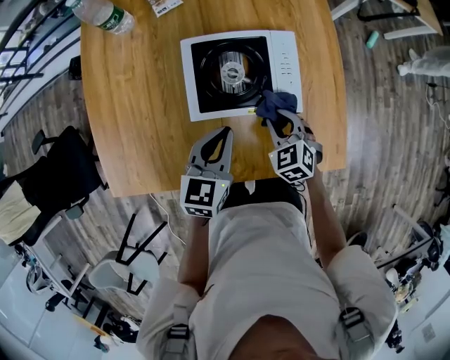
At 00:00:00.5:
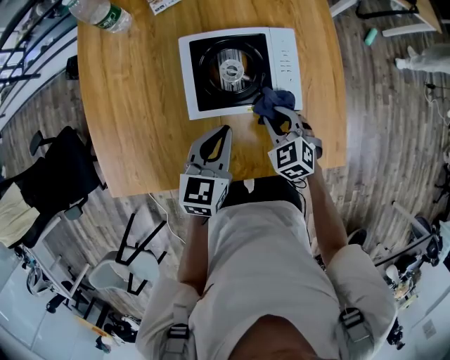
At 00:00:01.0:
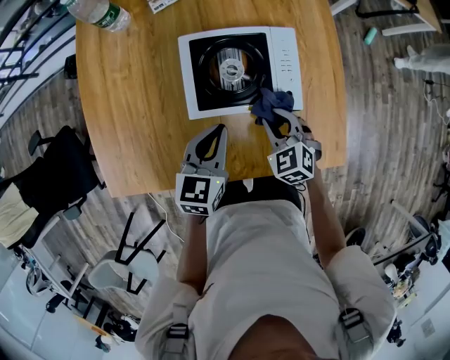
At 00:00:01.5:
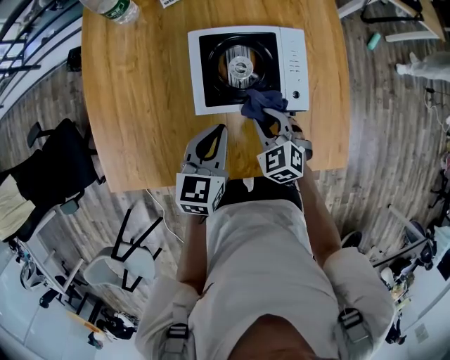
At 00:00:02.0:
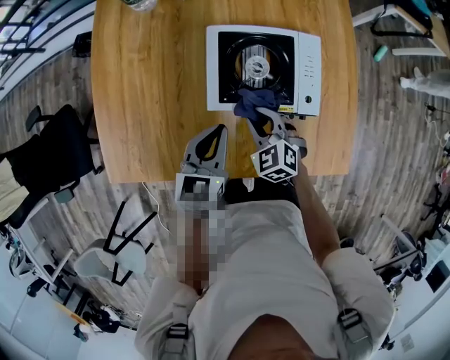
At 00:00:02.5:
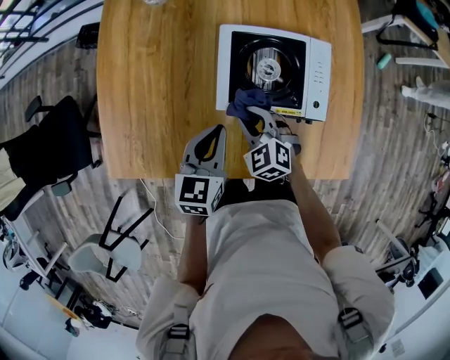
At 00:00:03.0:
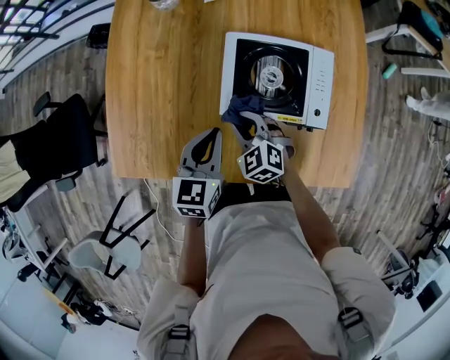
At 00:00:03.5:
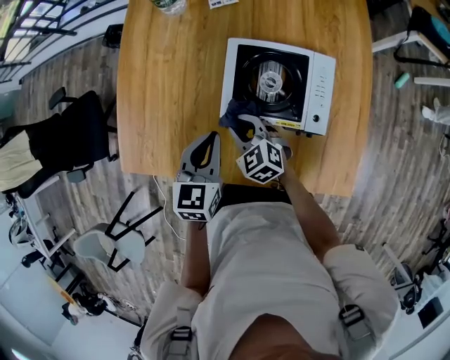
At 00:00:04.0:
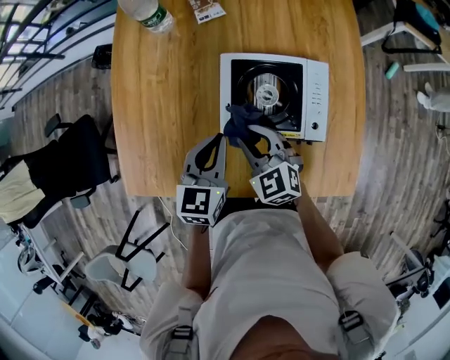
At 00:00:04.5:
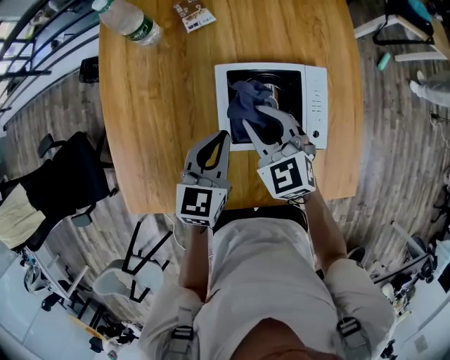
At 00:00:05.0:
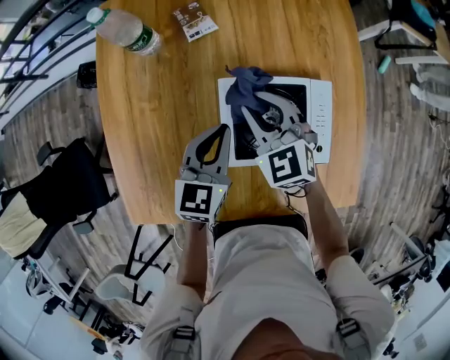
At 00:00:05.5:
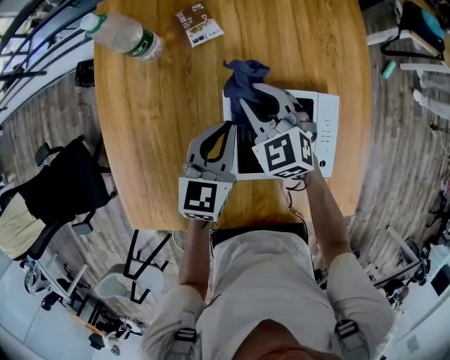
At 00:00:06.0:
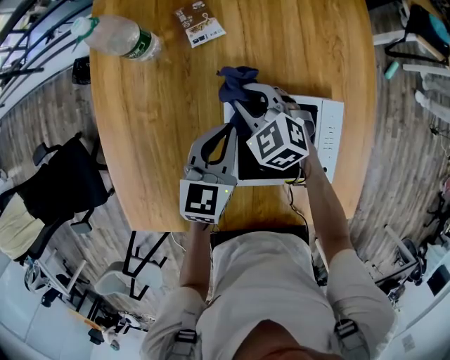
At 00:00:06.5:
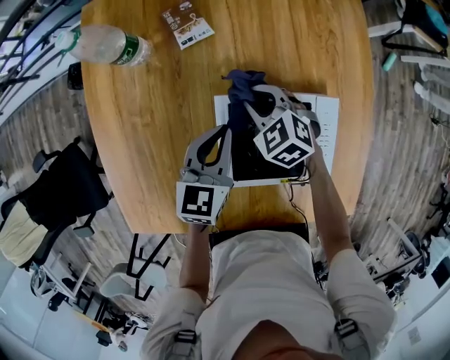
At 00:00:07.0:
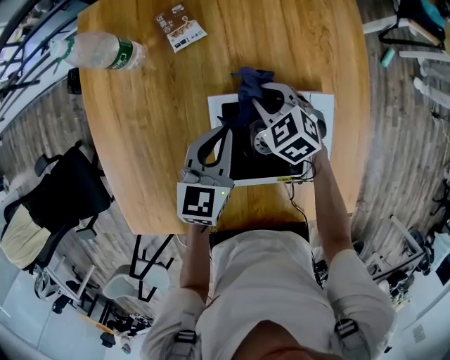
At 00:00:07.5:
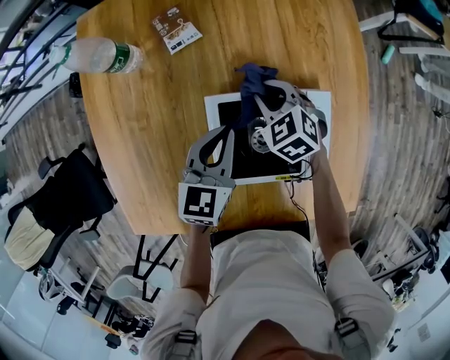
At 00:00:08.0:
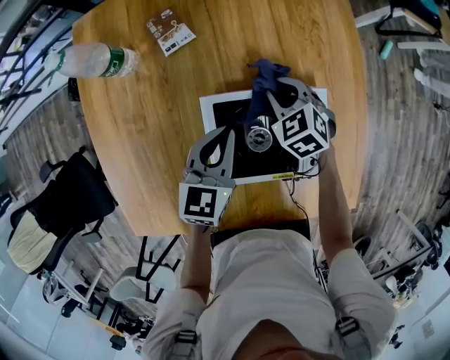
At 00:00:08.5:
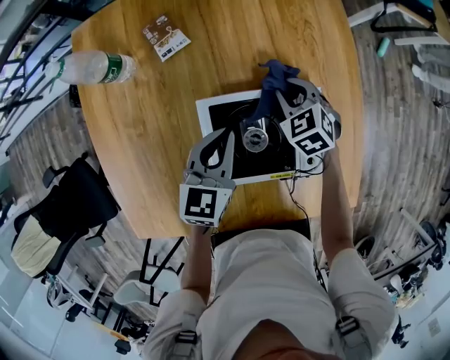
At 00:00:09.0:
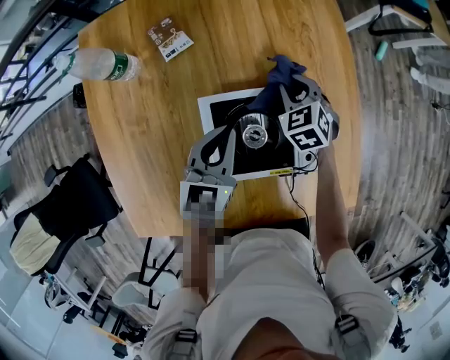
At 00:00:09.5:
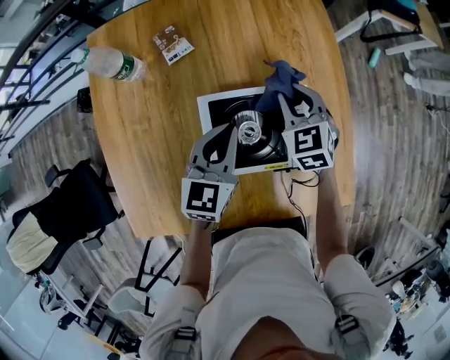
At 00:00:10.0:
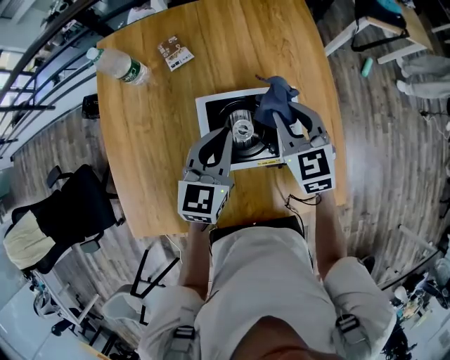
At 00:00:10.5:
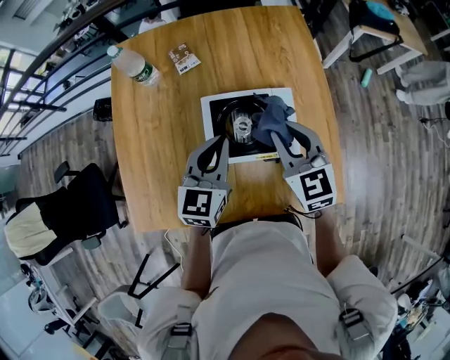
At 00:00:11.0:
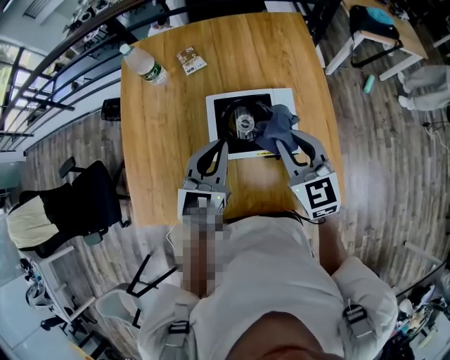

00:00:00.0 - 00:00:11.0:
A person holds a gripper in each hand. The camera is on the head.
00:00:00.0 - 00:00:02.0: The right gripper shifts approximately 10 cm to the left; the left gripper heads to the left, covering roughly 5 cm.
00:00:02.0 - 00:00:03.5: The right gripper moves to the left, some 10 cm.
00:00:03.5 - 00:00:05.5: Both grippers travel together forward, approximately 20 cm.
00:00:05.5 - 00:00:07.5: The right gripper goes roughly 10 cm to the right and downward.
00:00:07.5 - 00:00:09.0: The right gripper moves to the right, some 10 cm.
00:00:09.0 - 00:00:11.0: The right gripper shifts about 30 cm upward and backward, and points its fingers approximately 30 degrees further upward; the left gripper is displaced backward and upward by roughly 20 cm.

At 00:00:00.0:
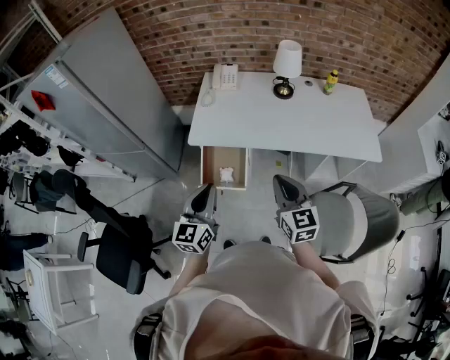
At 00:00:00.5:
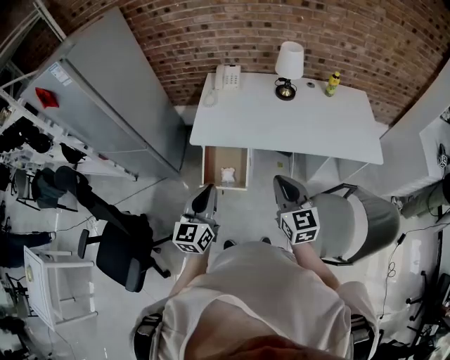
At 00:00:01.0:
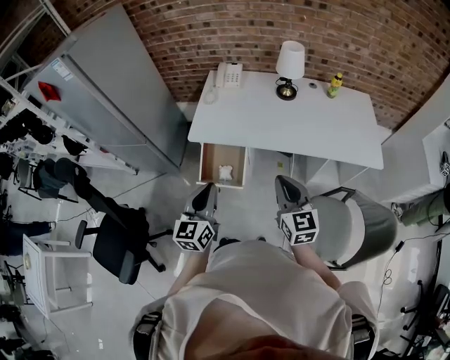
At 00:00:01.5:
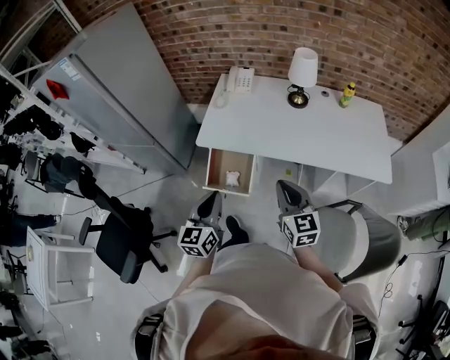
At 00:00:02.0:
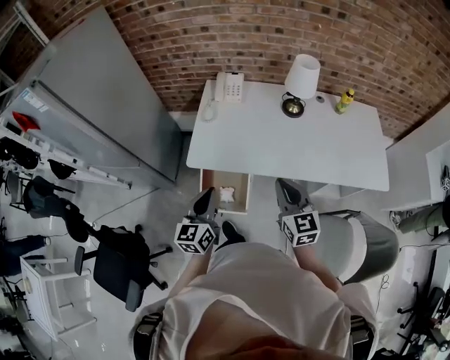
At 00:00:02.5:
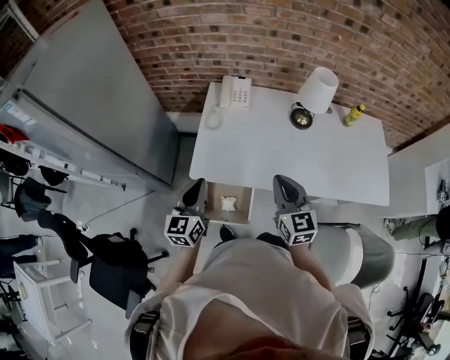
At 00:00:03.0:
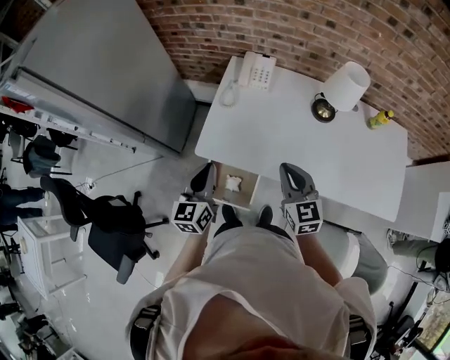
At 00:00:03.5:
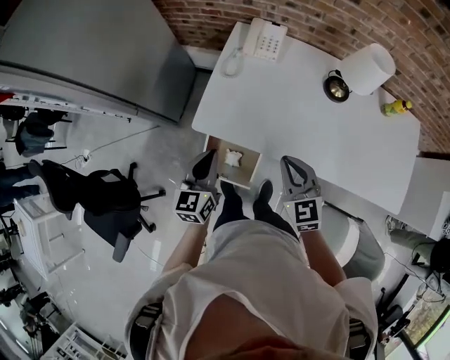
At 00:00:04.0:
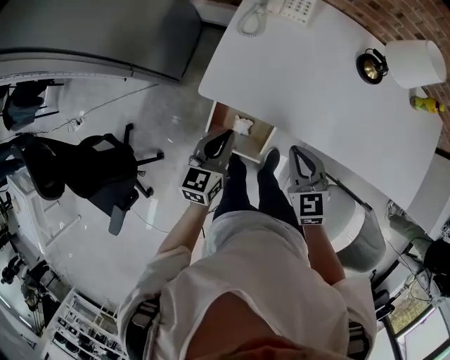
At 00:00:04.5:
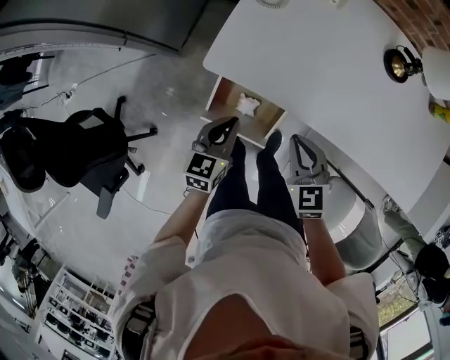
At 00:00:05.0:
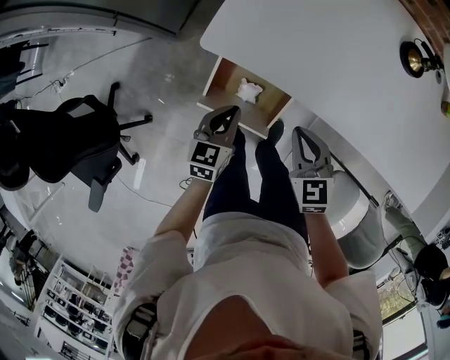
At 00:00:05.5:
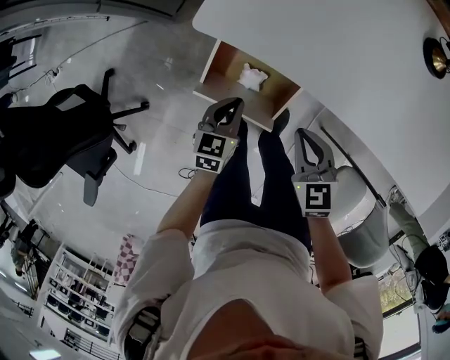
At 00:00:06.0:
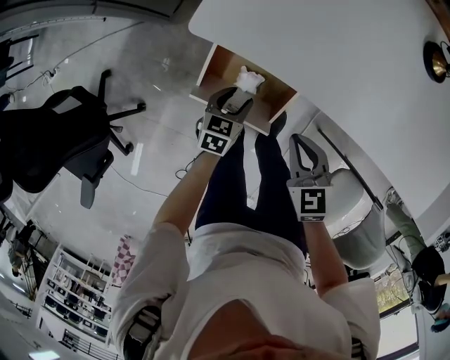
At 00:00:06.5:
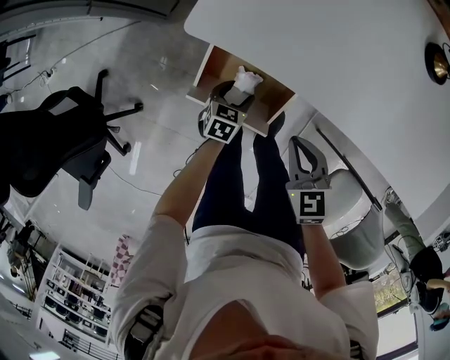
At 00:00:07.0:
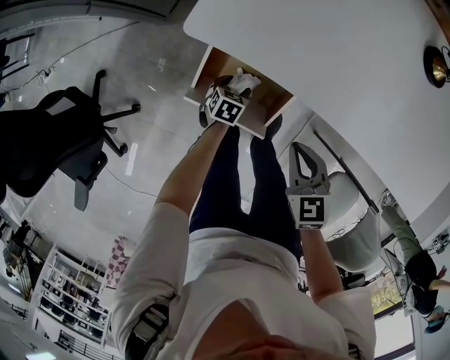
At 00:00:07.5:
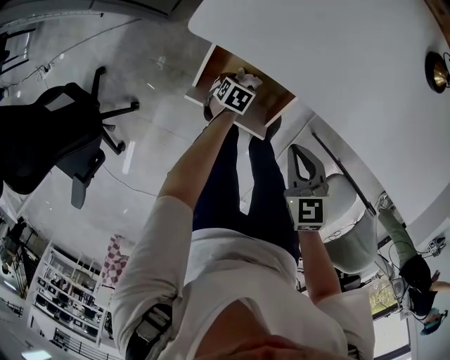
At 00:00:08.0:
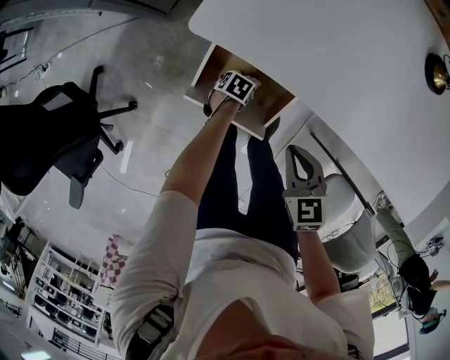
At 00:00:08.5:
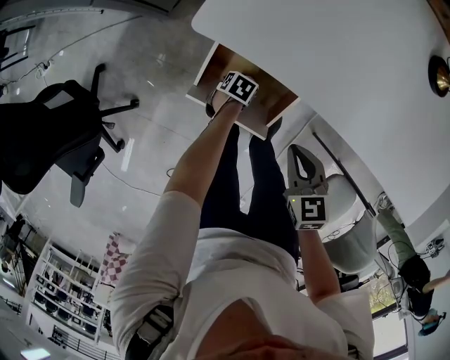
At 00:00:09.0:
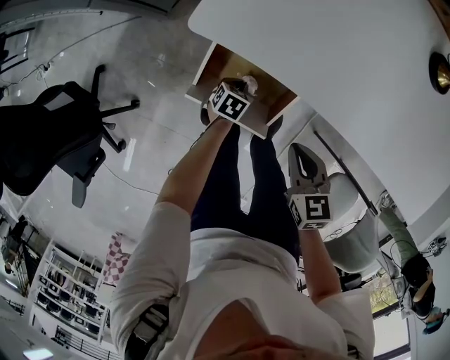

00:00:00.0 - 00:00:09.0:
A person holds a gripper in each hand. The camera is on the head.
00:00:00.0 - 00:00:02.0: Both grippers travel together forward, approximately 15 cm.
00:00:02.0 - 00:00:04.5: The left gripper goes approximately 25 cm downward, and changes its angle by some 20 degrees. The right gripper goes approximately 30 cm downward and forward, and changes its angle by roughly 30 degrees.
00:00:04.5 - 00:00:07.0: The right gripper travels downward and backward by approximately 15 cm. Meanwhile the left gripper is displaced downward by some 35 cm, points its fingers approximately 30 degrees further downward, and opens its fingers.
00:00:07.0 - 00:00:09.0: The left gripper closes up.

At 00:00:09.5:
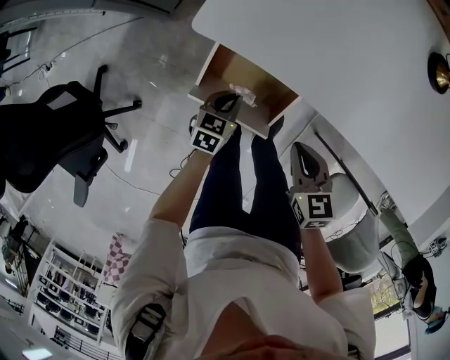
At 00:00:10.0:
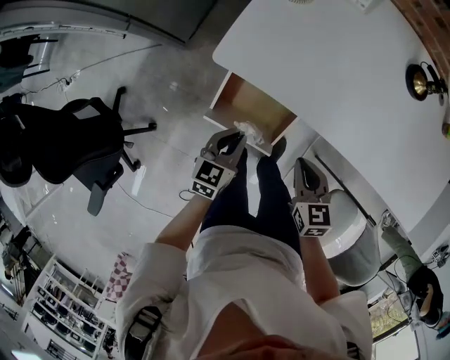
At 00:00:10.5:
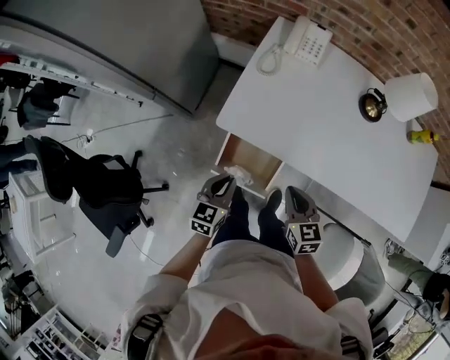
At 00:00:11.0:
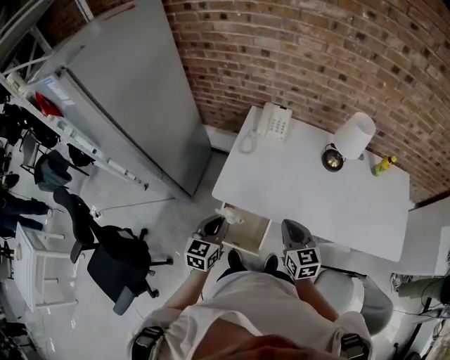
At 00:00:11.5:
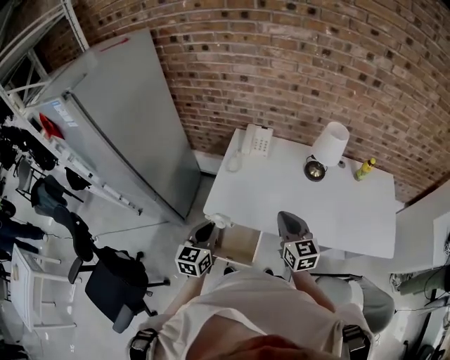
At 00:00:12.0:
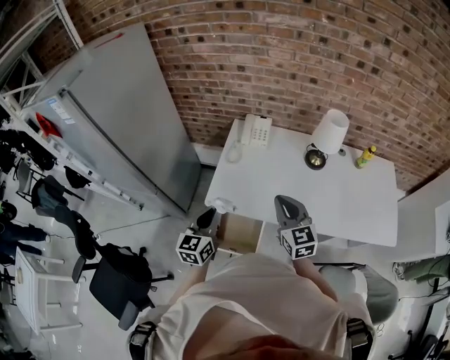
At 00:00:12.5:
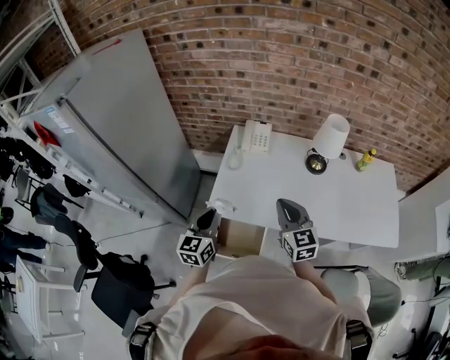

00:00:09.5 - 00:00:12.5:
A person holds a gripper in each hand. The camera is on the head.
00:00:09.5 - 00:00:11.0: The grippers both shift upward by about 35 cm. The left gripper rotates approximately 30 degrees, while the right gripper turns by approximately 30 degrees.
00:00:11.0 - 00:00:12.5: Both grippers move upward, about 10 cm.

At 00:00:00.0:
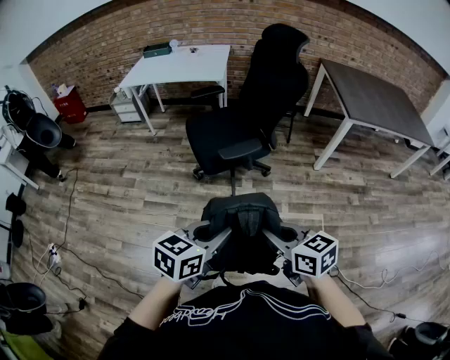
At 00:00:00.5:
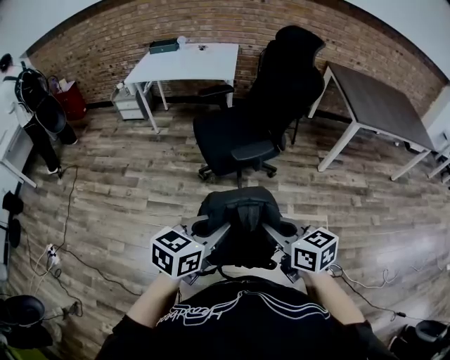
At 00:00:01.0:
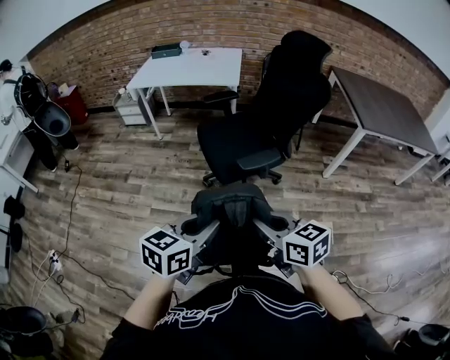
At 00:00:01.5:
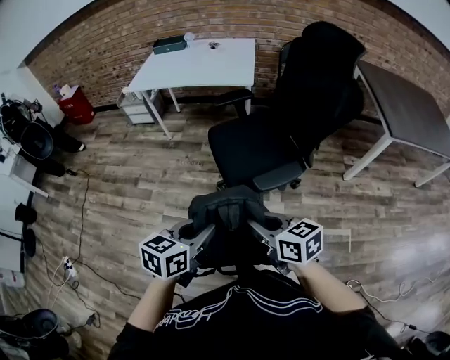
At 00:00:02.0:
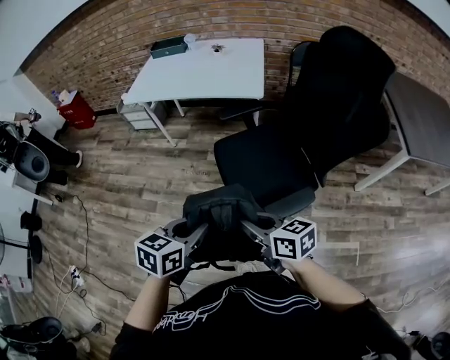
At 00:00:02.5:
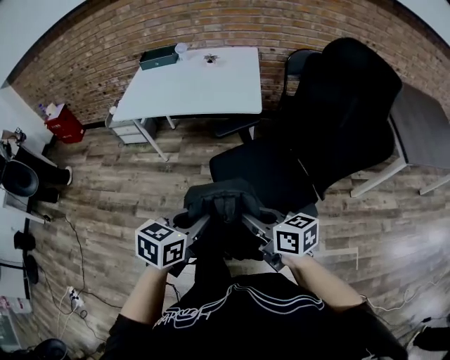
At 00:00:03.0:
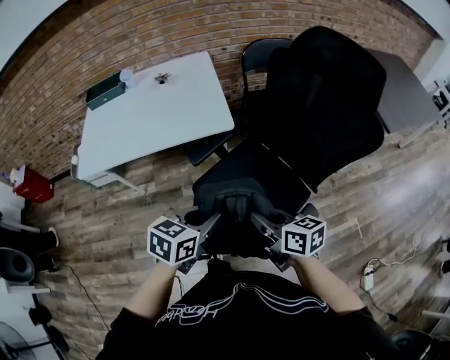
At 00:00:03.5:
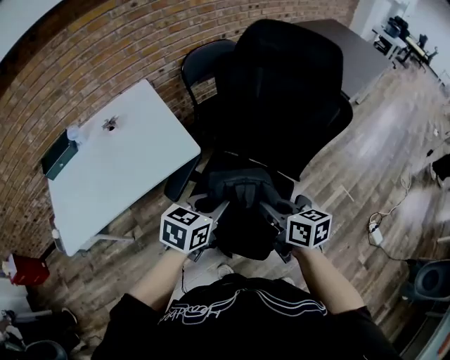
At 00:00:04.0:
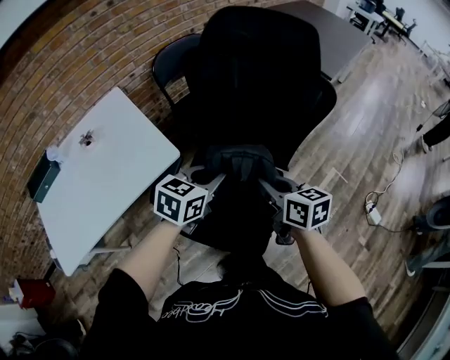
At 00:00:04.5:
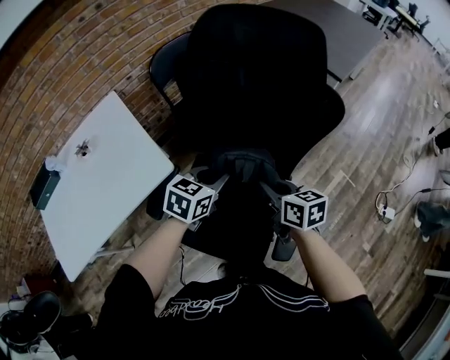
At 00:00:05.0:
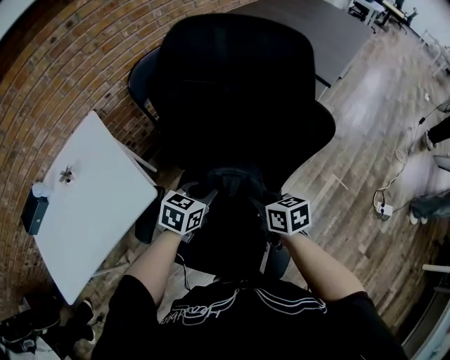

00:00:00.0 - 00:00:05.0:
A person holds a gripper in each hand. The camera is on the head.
00:00:00.0 - 00:00:02.5: The pair of grippers is taken forward and to the left, some 50 cm.
00:00:02.5 - 00:00:05.0: The left gripper shifts by about 50 cm, and changes its angle by roughly 50 degrees. The right gripper shifts by approximately 35 cm, and swivels about 50 degrees.
